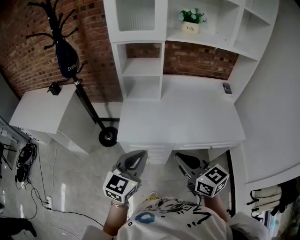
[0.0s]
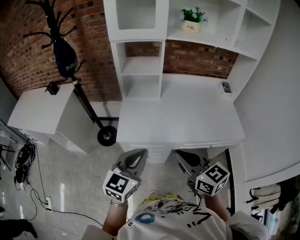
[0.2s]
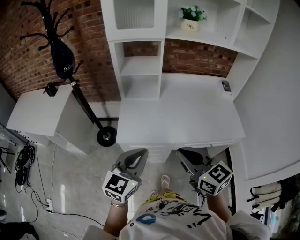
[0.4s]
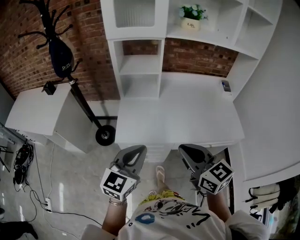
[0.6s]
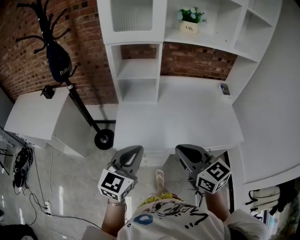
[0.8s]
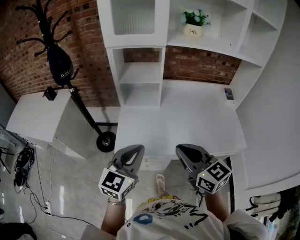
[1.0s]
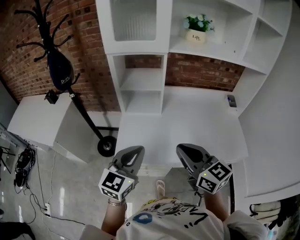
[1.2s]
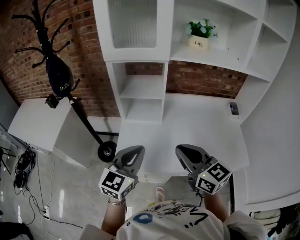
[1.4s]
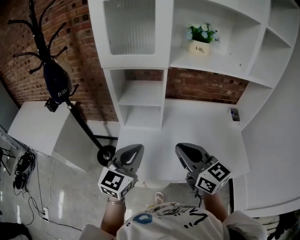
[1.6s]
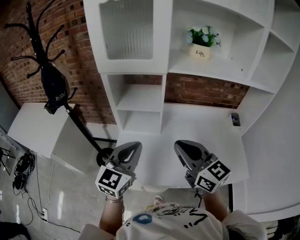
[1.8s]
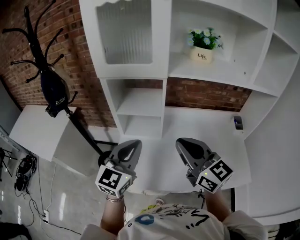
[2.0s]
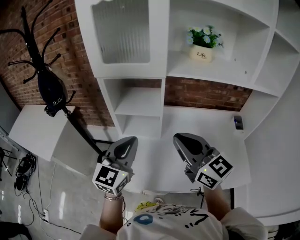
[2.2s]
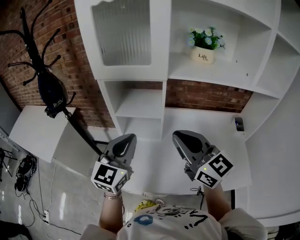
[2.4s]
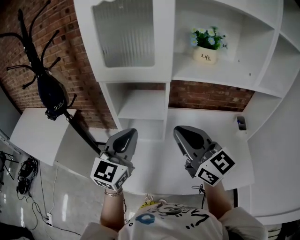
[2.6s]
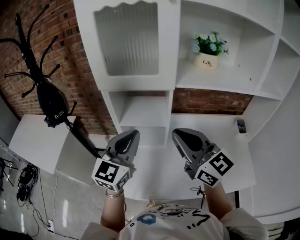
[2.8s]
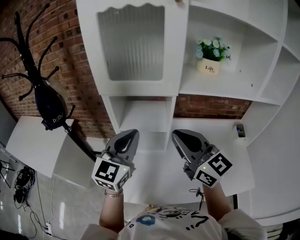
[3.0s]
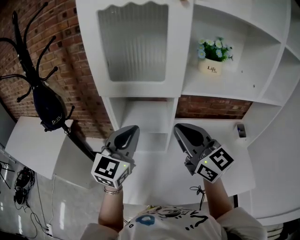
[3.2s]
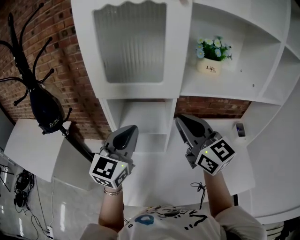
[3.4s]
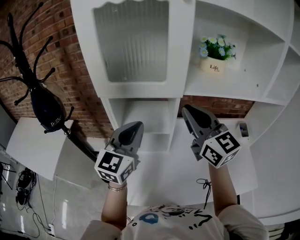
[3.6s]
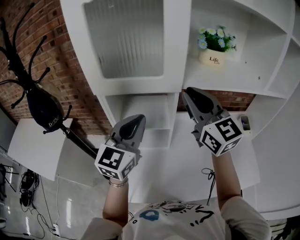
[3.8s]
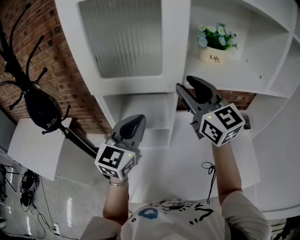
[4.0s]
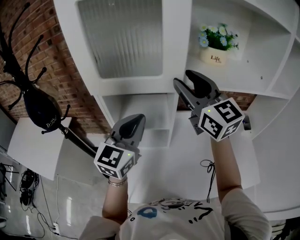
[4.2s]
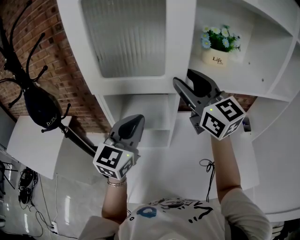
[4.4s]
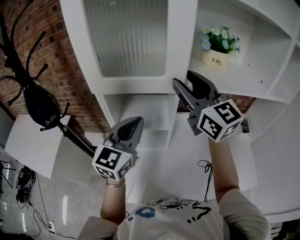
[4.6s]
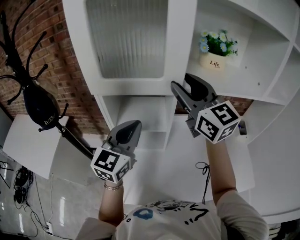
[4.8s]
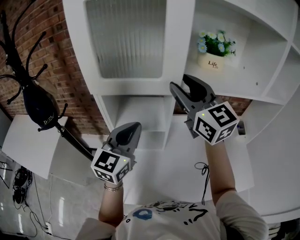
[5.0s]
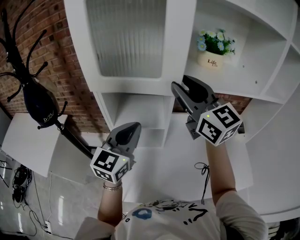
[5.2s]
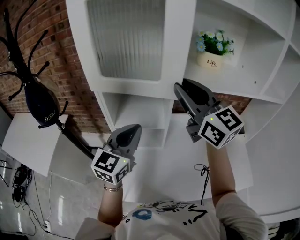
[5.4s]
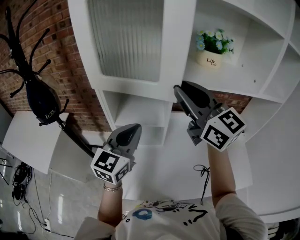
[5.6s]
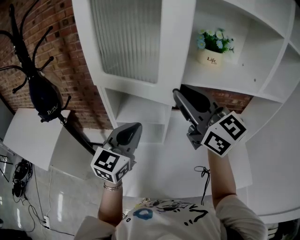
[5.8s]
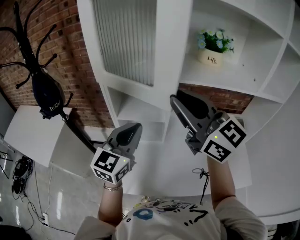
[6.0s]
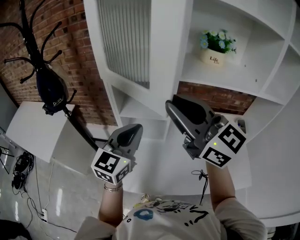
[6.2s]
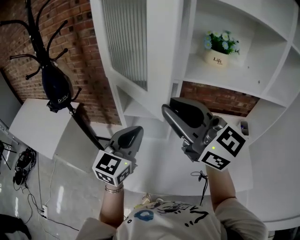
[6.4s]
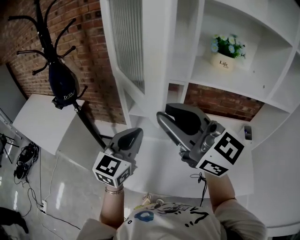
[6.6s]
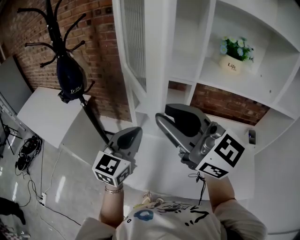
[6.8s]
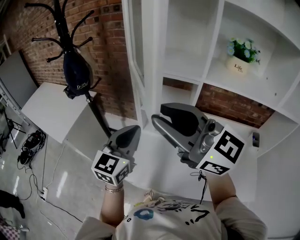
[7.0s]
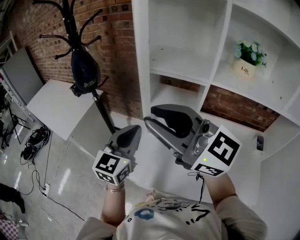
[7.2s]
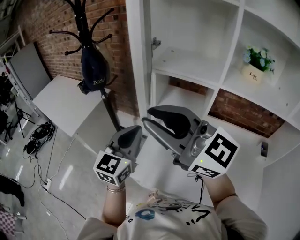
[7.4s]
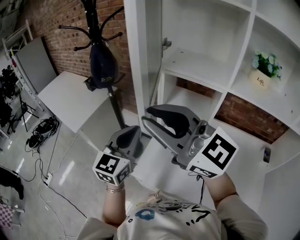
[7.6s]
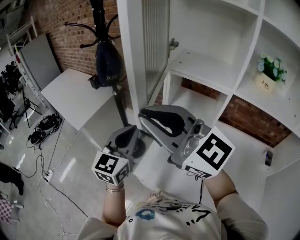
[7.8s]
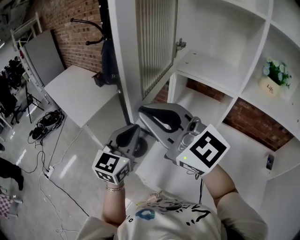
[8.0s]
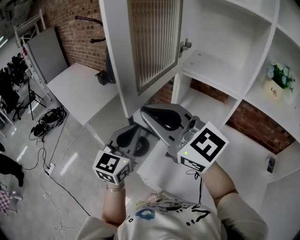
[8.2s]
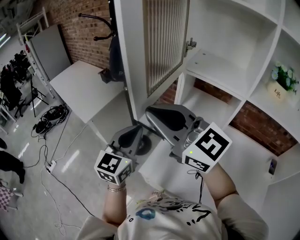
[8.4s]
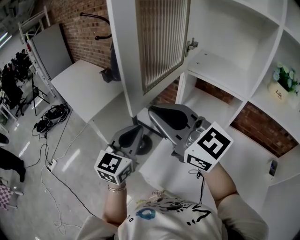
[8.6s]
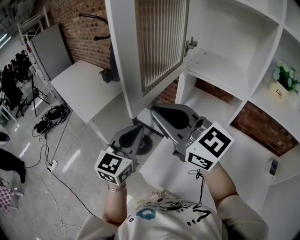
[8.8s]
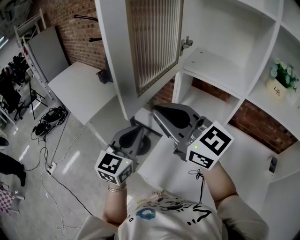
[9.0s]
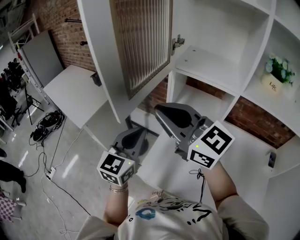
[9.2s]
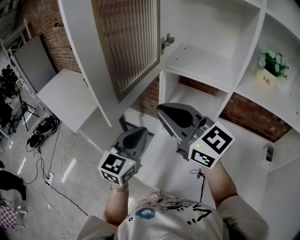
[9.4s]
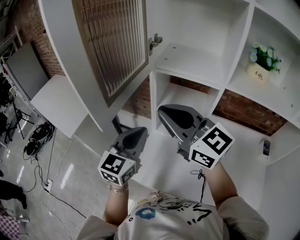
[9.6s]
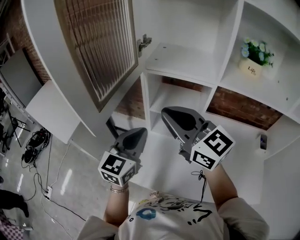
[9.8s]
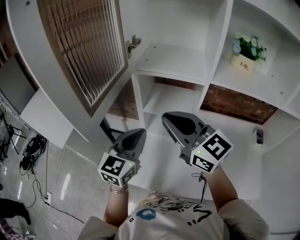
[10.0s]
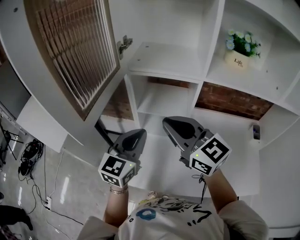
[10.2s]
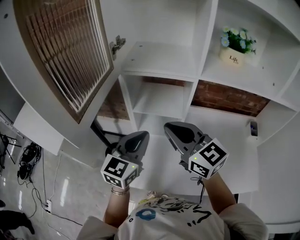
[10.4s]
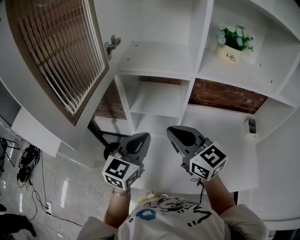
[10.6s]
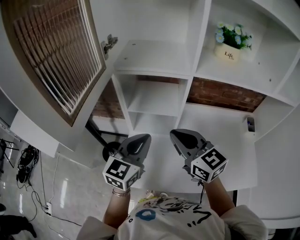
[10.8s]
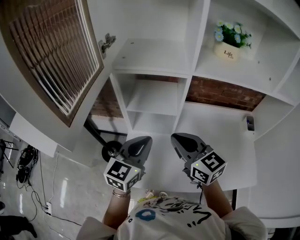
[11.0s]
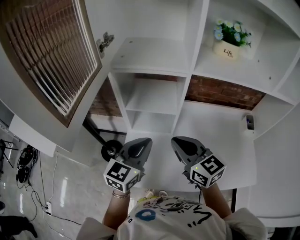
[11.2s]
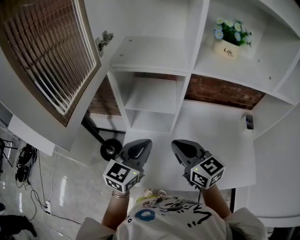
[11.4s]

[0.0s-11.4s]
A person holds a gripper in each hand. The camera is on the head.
0.0s to 1.4s: Both grippers travel together forward, some 20 cm.
1.4s to 2.8s: Both grippers move forward and upward, approximately 20 cm.
2.8s to 4.2s: The right gripper shifts roughly 20 cm forward and upward, and opens up. The left gripper moves forward, some 10 cm.
4.2s to 5.6s: The left gripper ends up about 5 cm from where it was. Meanwhile the right gripper moves backward, some 5 cm.
5.6s to 7.2s: The left gripper shifts by some 15 cm, and changes its angle by roughly 20 degrees. Meanwhile the right gripper moves about 25 cm, and rotates about 40 degrees.
7.2s to 8.6s: The left gripper heads to the left, covering about 10 cm; the right gripper is displaced to the left and forward by some 10 cm.
8.6s to 10.0s: Both grippers move to the right, approximately 15 cm. The left gripper swivels roughly 20 degrees. The right gripper turns by some 30 degrees.
10.0s to 11.4s: The right gripper travels downward and to the right by roughly 15 cm, and rotates about 30 degrees. Meanwhile the left gripper shifts approximately 10 cm to the right and downward.

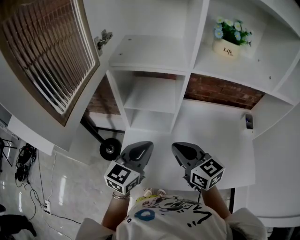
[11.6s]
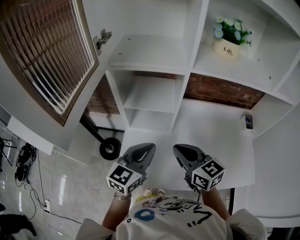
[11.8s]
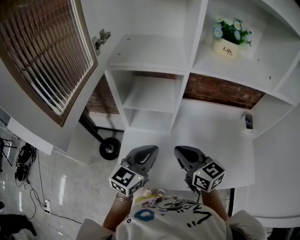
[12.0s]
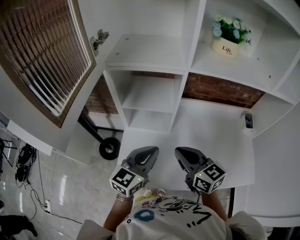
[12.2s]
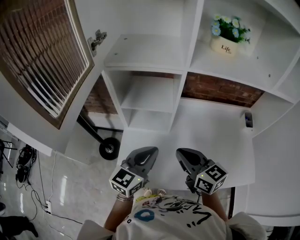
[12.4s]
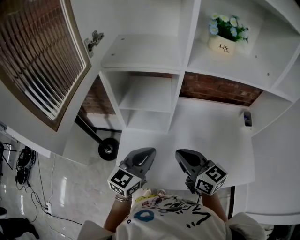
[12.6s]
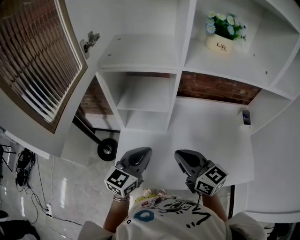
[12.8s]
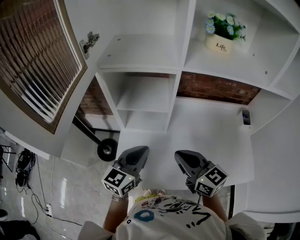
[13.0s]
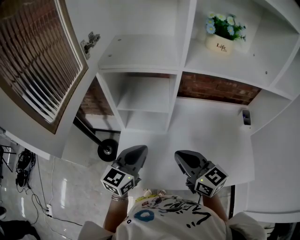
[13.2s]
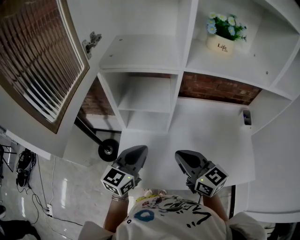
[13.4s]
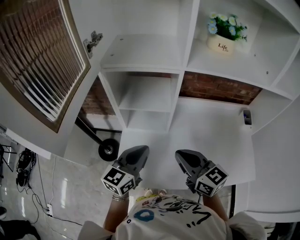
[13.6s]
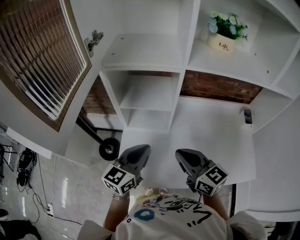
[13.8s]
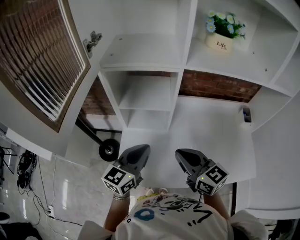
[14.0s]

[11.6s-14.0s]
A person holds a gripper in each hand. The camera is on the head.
11.6s to 14.0s: The grippers move only a little.

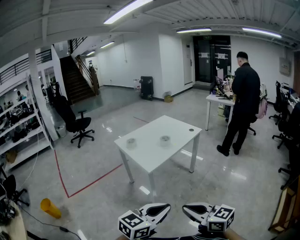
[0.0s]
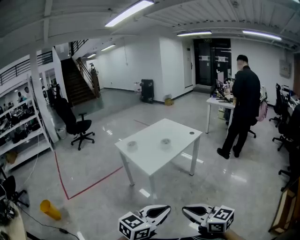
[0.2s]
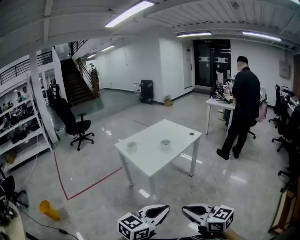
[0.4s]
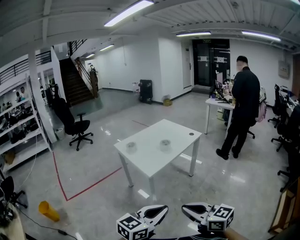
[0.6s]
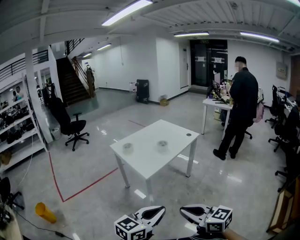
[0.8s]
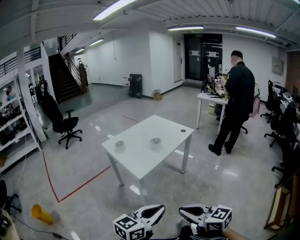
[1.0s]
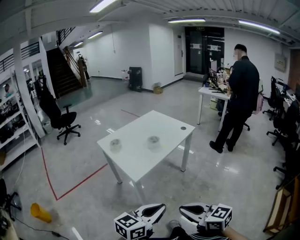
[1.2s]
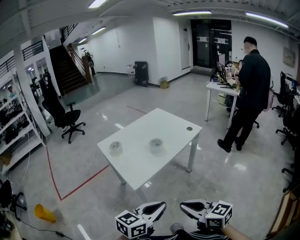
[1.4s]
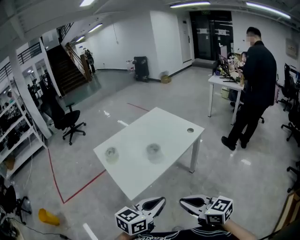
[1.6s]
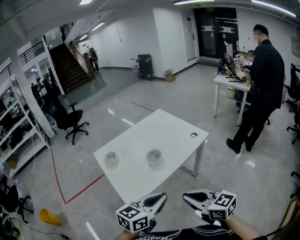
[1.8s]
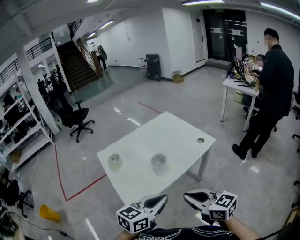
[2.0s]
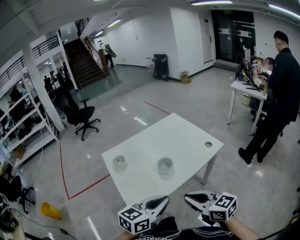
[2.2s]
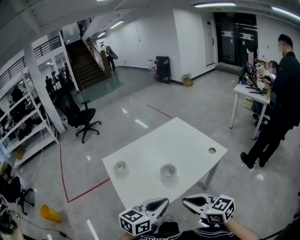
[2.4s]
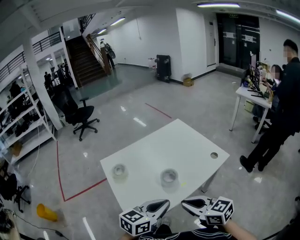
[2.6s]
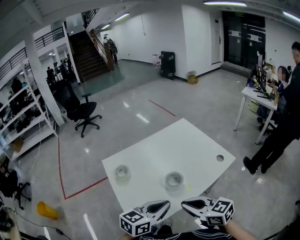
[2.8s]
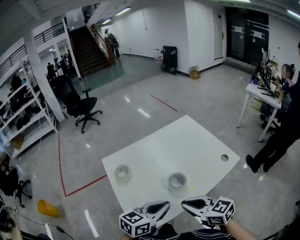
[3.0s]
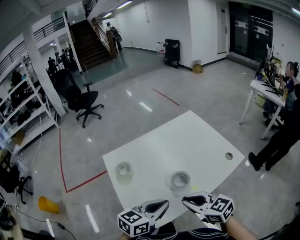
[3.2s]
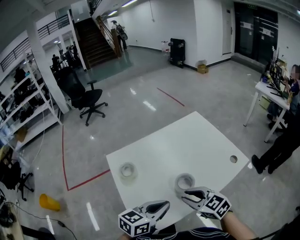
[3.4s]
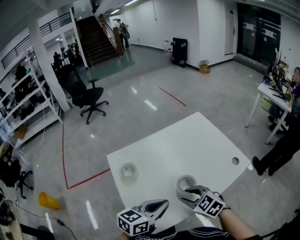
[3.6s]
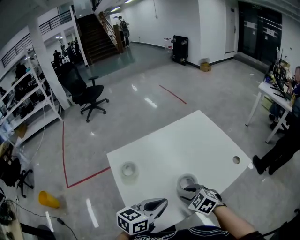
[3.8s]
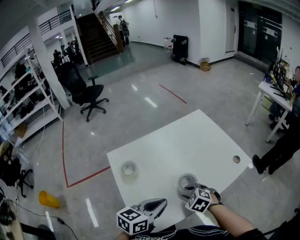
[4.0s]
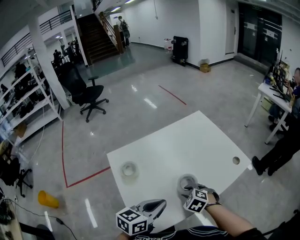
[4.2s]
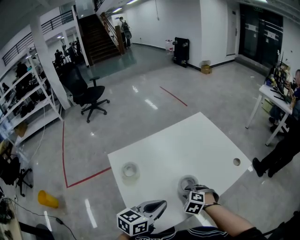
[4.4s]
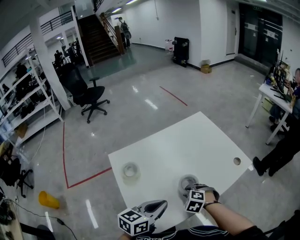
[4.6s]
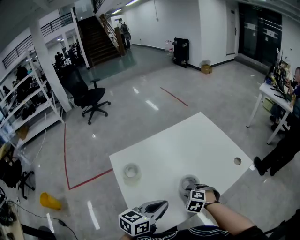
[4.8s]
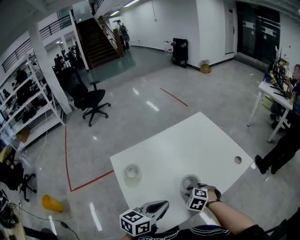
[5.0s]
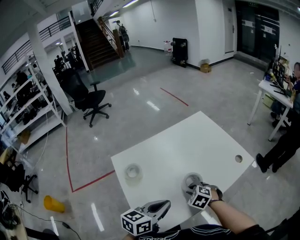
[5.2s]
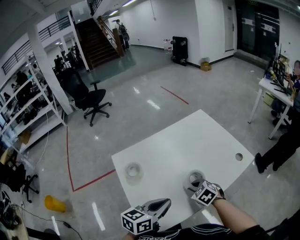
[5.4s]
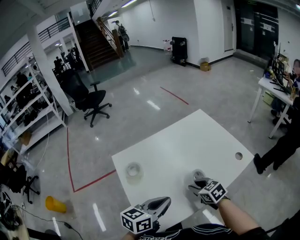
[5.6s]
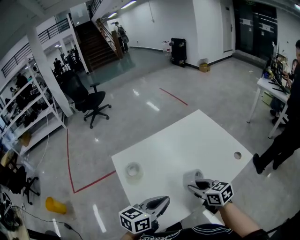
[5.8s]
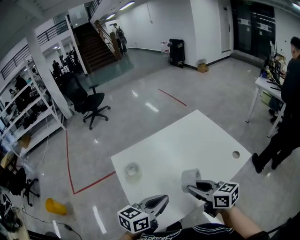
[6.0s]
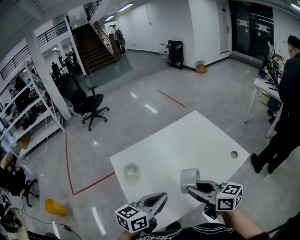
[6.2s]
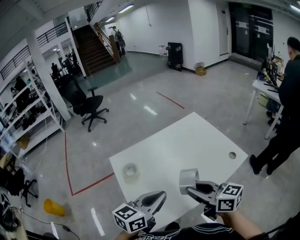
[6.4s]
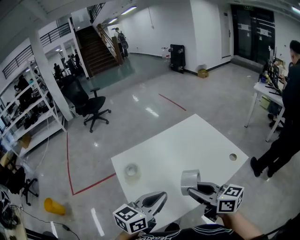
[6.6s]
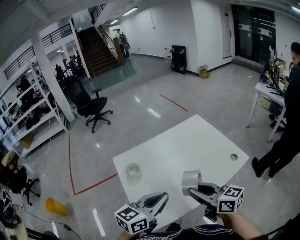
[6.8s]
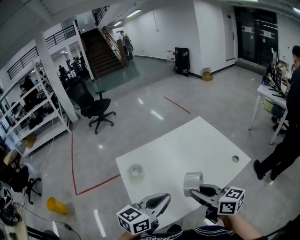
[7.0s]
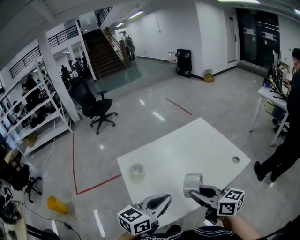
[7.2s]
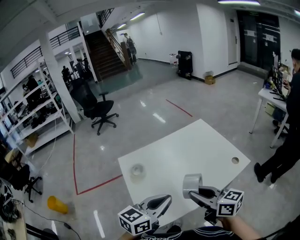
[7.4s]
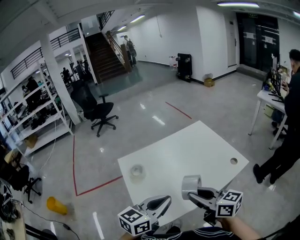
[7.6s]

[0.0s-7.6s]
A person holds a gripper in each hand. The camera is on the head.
0.0s to 1.6s: Both grippers travel together forward, approximately 30 cm.
1.6s to 3.0s: Both grippers travel together forward, approximately 25 cm.
3.0s to 4.6s: The left gripper shifts some 5 cm to the left; the right gripper goes roughly 20 cm downward and forward, points its fingers some 50 degrees further downward, and opens its fingers.
4.6s to 6.0s: The right gripper is displaced upward by some 20 cm, and tilts its fingers approximately 50 degrees upward.
6.0s to 7.6s: The left gripper shifts about 5 cm upward, while the right gripper is displaced upward and backward by roughly 10 cm.

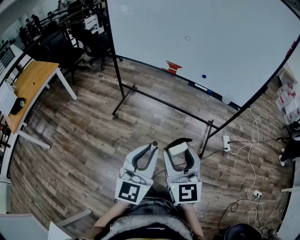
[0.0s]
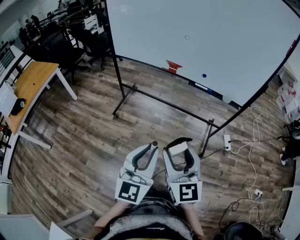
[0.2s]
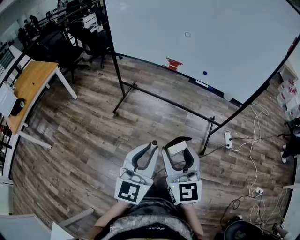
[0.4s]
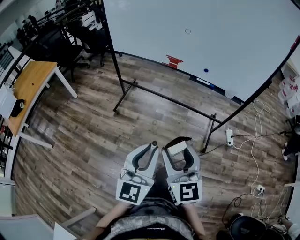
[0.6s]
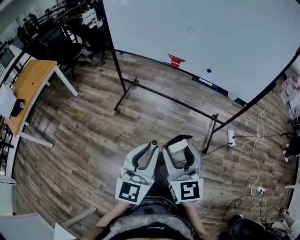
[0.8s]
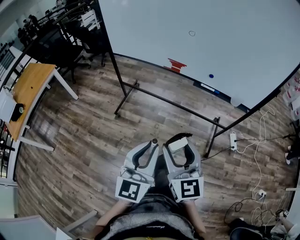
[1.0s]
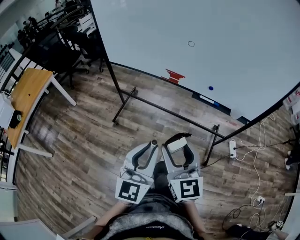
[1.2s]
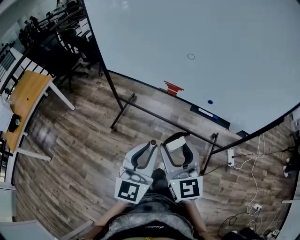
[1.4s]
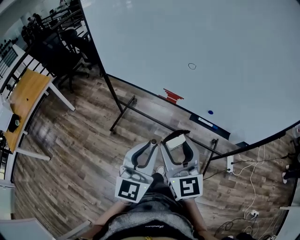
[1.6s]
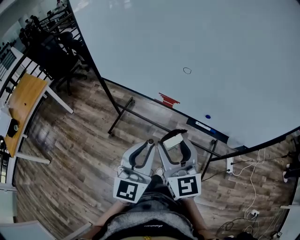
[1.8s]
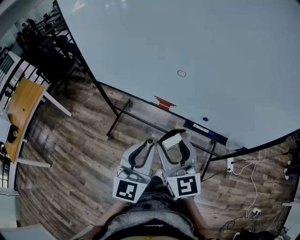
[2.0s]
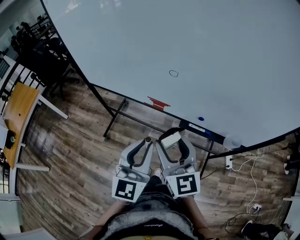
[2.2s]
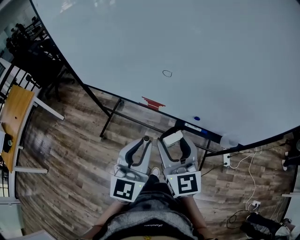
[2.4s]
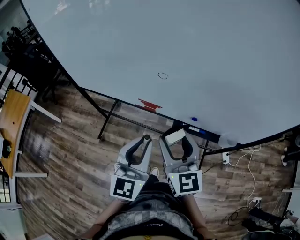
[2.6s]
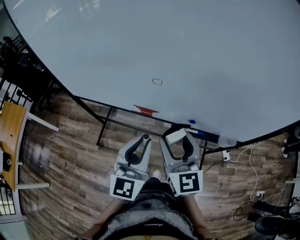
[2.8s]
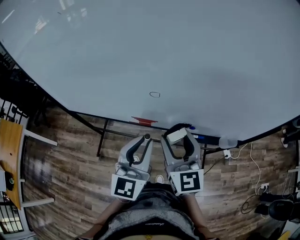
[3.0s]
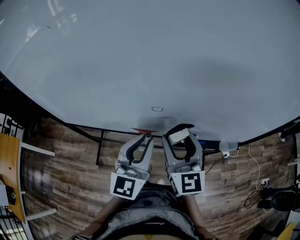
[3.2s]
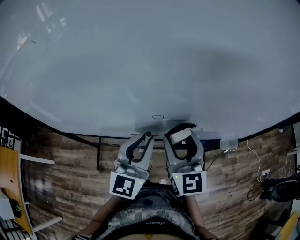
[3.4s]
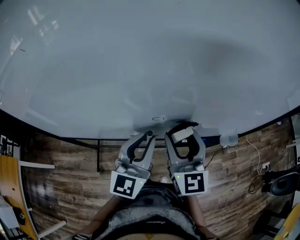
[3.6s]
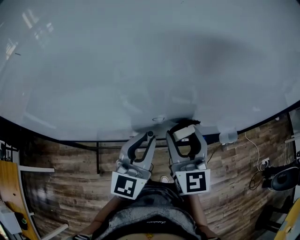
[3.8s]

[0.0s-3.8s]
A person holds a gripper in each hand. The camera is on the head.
0.0s to 1.2s: The two grippers go approximately 20 cm forward.
1.2s to 2.6s: Both grippers travel together forward, approximately 25 cm.
2.6s to 3.8s: The right gripper moves some 15 cm, and changes its angle by some 30 degrees. The left gripper ends up some 15 cm from where it was, and swivels roughly 30 degrees.
